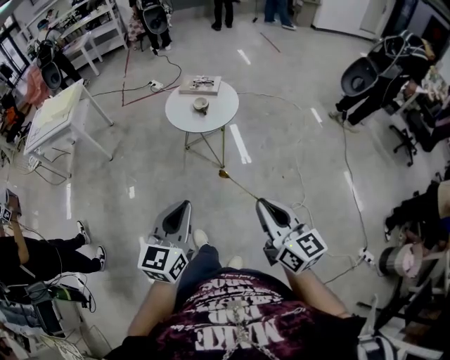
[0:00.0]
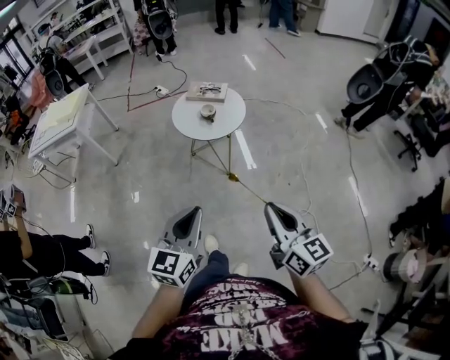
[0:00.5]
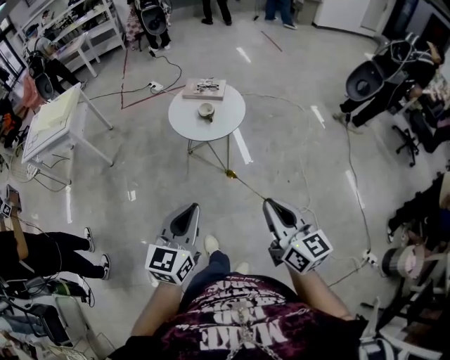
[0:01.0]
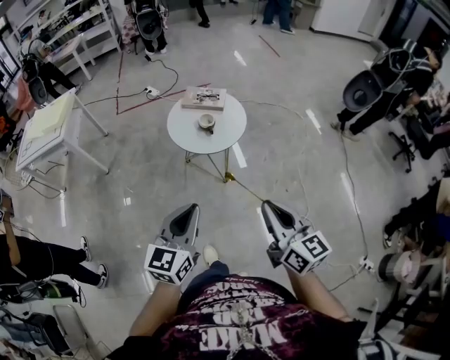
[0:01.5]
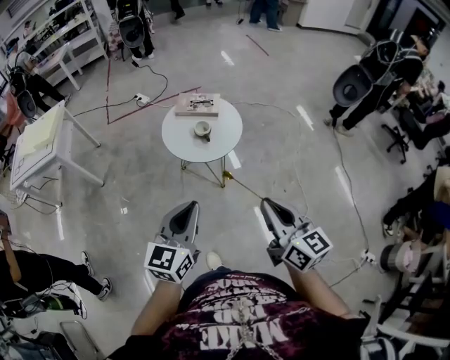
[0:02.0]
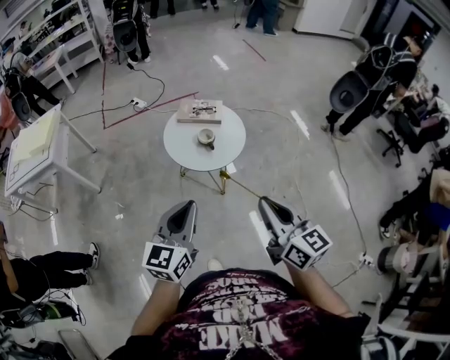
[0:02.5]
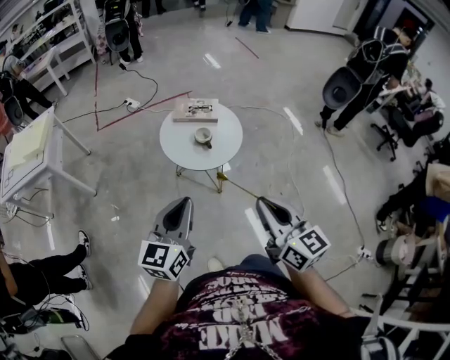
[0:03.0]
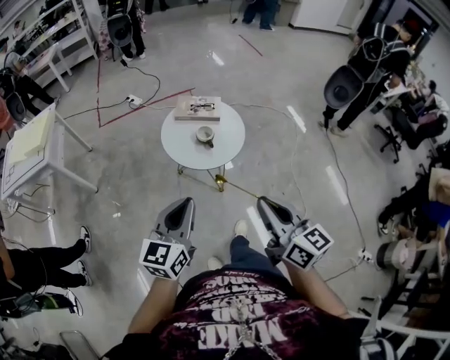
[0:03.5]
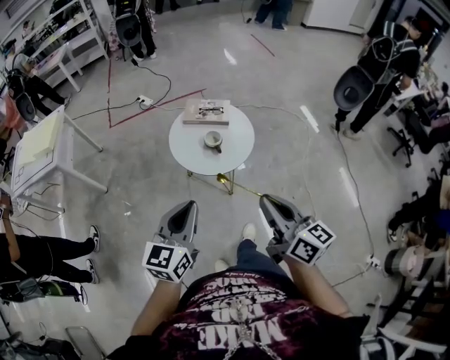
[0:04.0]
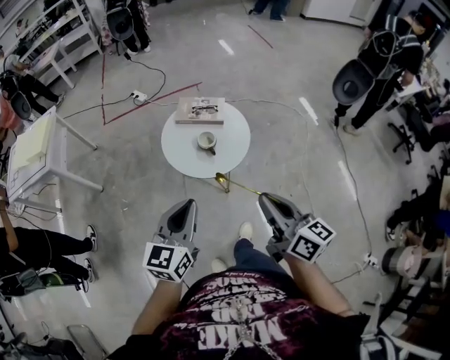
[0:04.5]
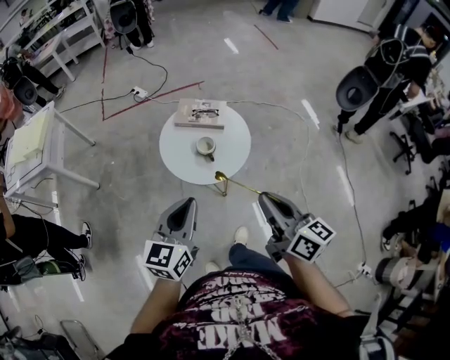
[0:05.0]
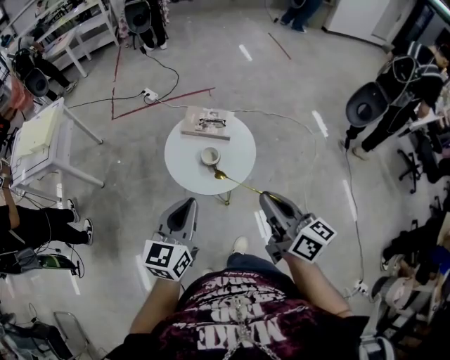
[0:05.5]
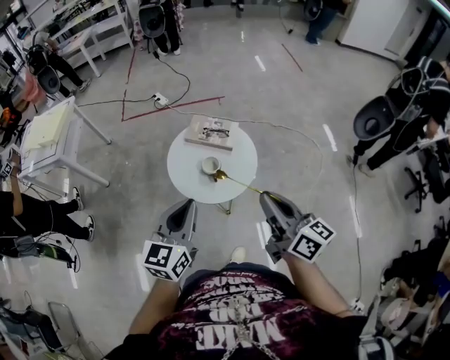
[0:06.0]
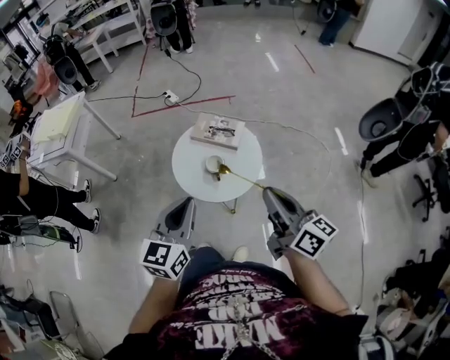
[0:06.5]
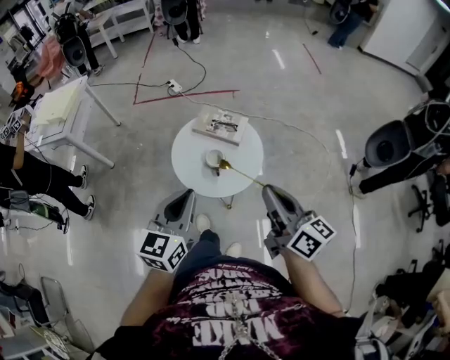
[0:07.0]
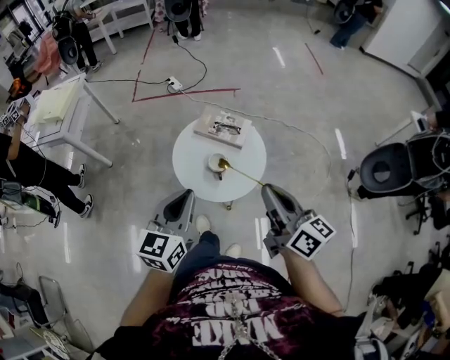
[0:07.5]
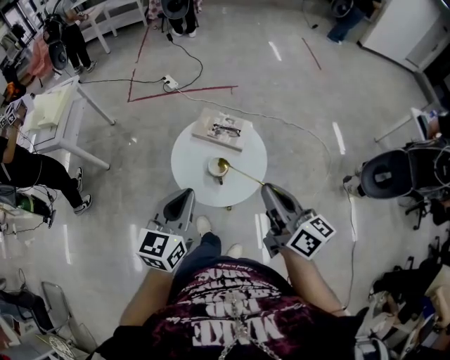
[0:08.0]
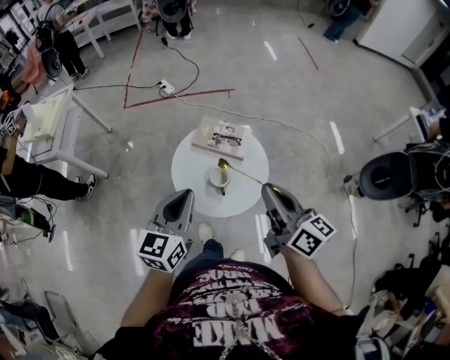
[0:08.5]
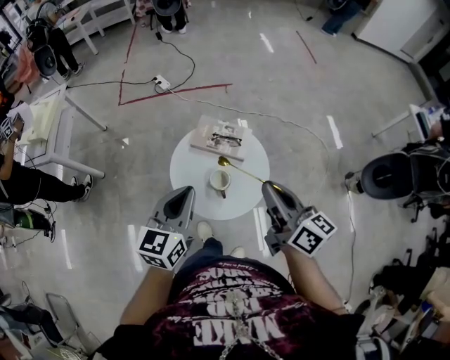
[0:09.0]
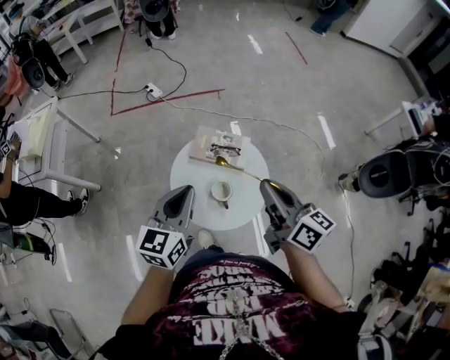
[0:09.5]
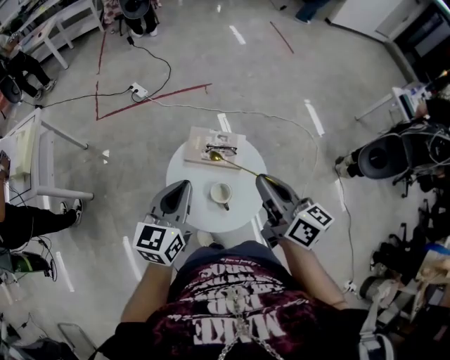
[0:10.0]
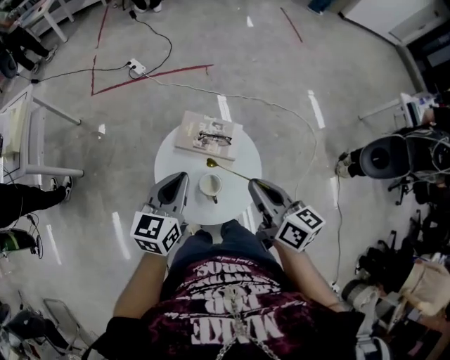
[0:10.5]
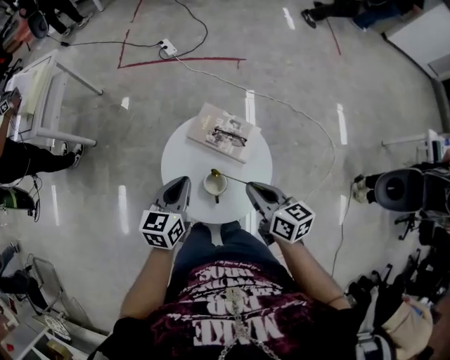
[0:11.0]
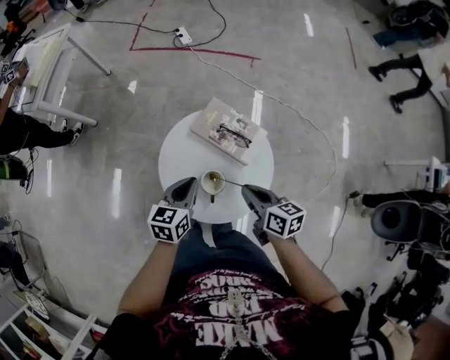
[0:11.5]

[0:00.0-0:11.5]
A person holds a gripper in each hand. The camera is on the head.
0:00.0 to 0:02.0: The two grippers go approximately 20 cm forward.
0:02.0 to 0:04.0: The left gripper shifts roughly 10 cm forward and to the left; the right gripper moves forward, approximately 10 cm.
0:04.0 to 0:06.0: The grippers both shift forward and to the right by approximately 20 cm.
0:06.0 to 0:07.5: The right gripper moves forward, about 5 cm.
0:07.5 to 0:09.5: Both grippers move forward, roughly 15 cm.
0:09.5 to 0:11.5: The grippers both shift downward by approximately 25 cm. The right gripper changes its angle by roughly 40 degrees, while the left gripper turns by roughly 30 degrees.

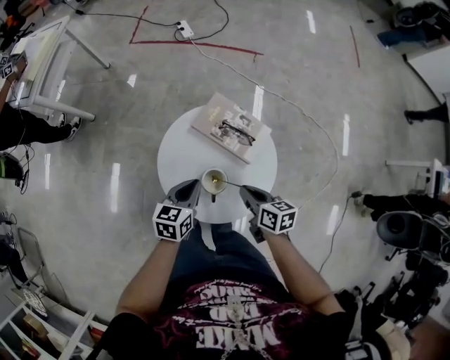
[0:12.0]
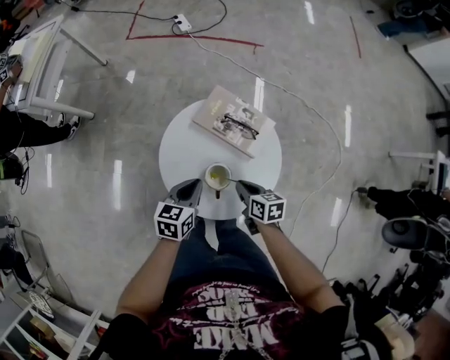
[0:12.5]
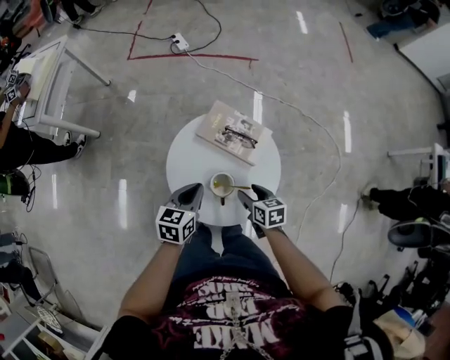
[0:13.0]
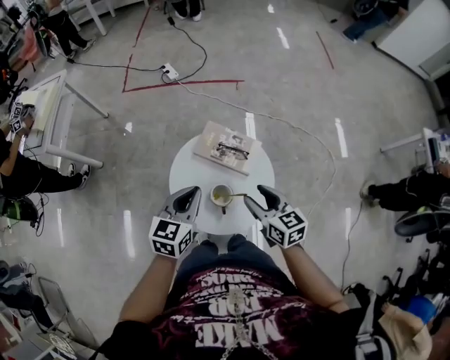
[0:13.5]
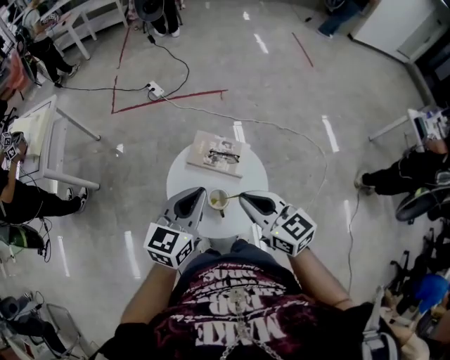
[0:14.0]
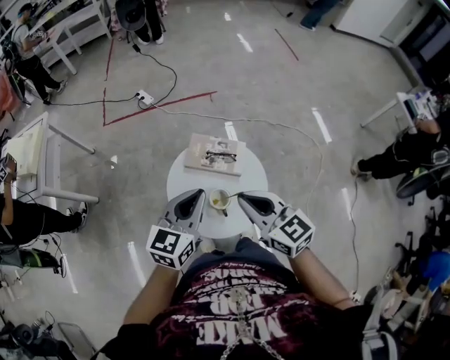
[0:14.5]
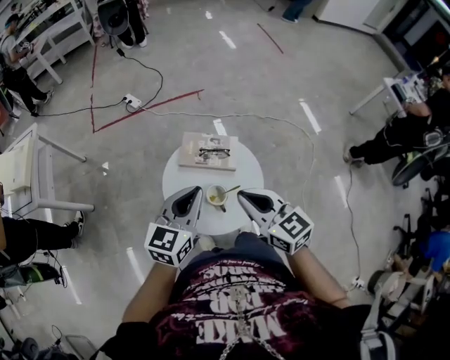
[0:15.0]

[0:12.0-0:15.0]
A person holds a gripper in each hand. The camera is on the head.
0:12.0 to 0:13.5: The grippers both shift upward by some 15 cm. The right gripper changes its angle by approximately 30 degrees, and opens its fingers; the left gripper turns by approximately 20 degrees.
0:13.5 to 0:15.0: The right gripper is displaced upward and to the left by roughly 15 cm, and closes its fingers; the left gripper shifts roughly 10 cm upward.

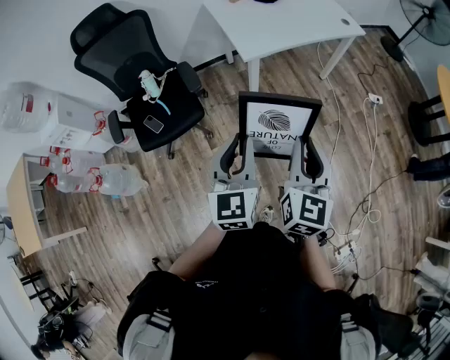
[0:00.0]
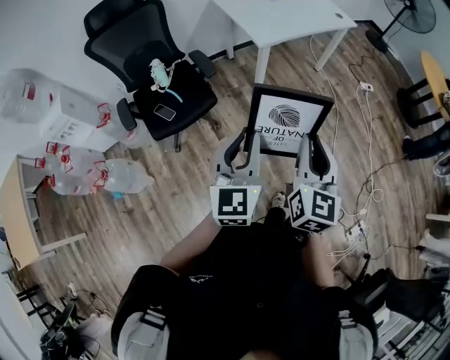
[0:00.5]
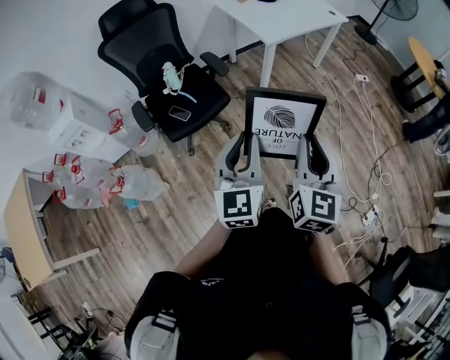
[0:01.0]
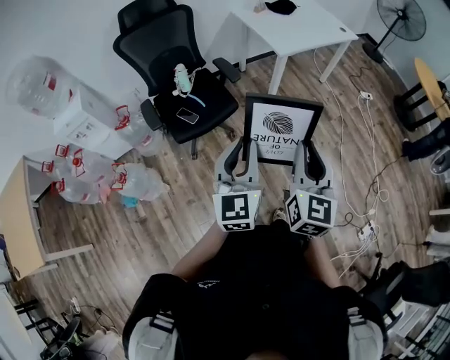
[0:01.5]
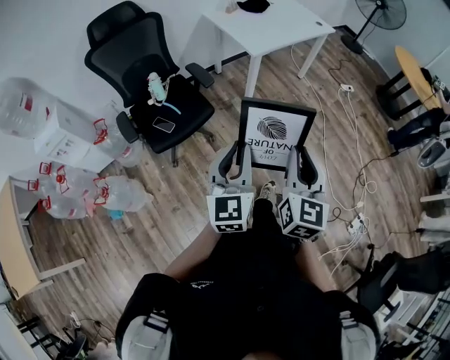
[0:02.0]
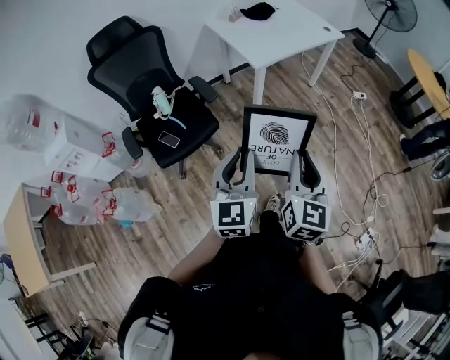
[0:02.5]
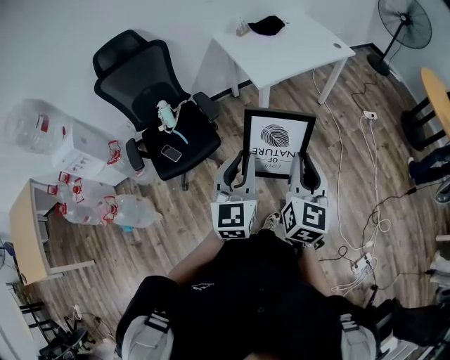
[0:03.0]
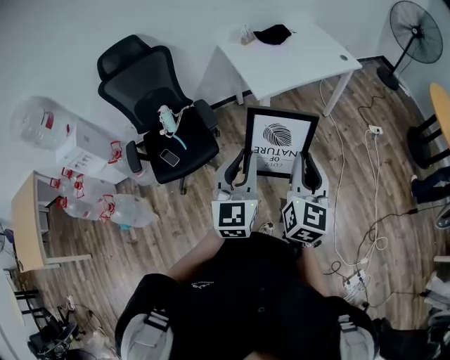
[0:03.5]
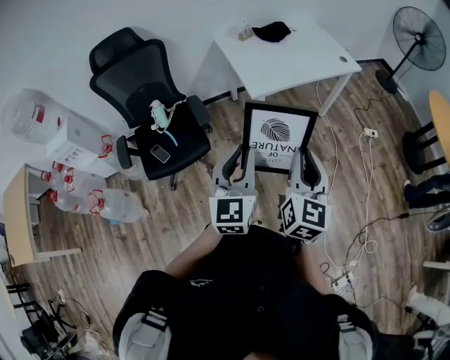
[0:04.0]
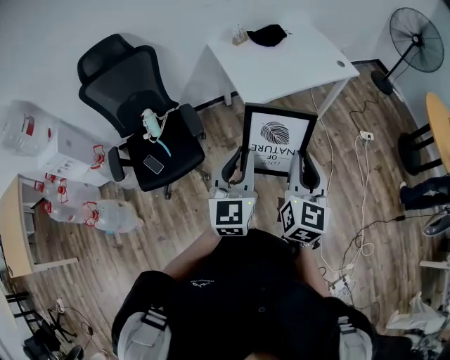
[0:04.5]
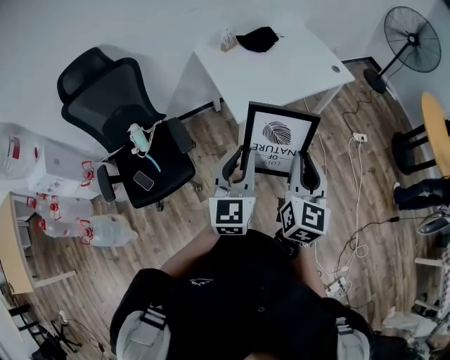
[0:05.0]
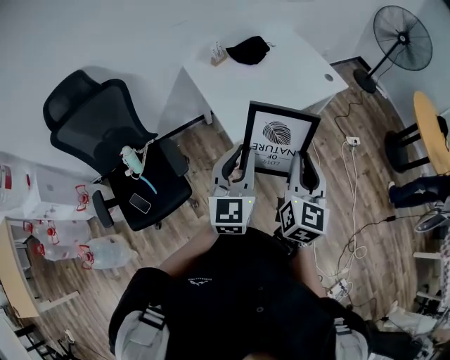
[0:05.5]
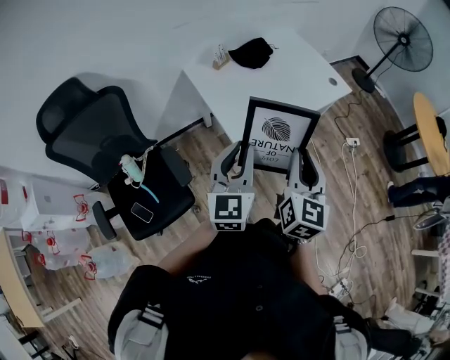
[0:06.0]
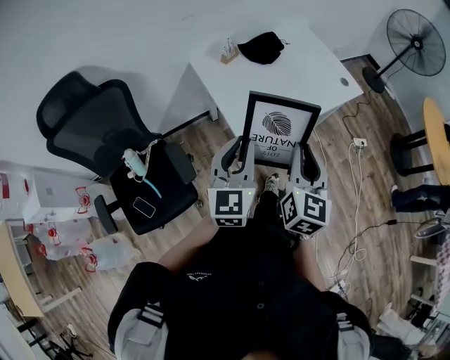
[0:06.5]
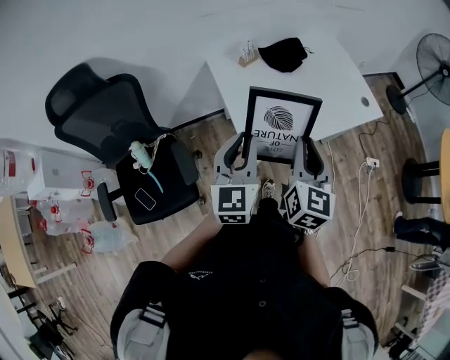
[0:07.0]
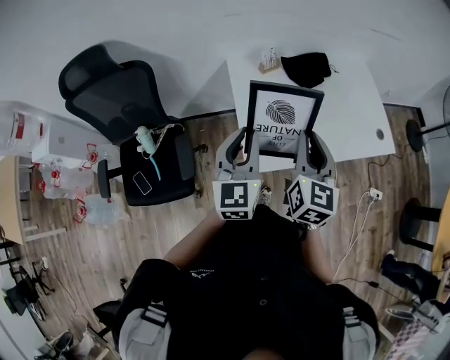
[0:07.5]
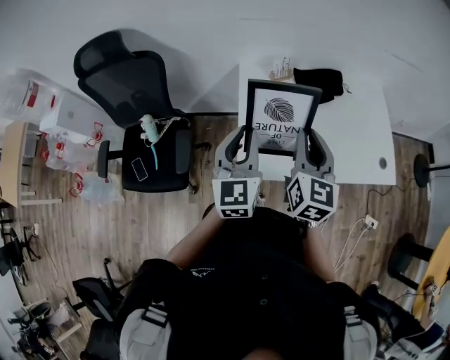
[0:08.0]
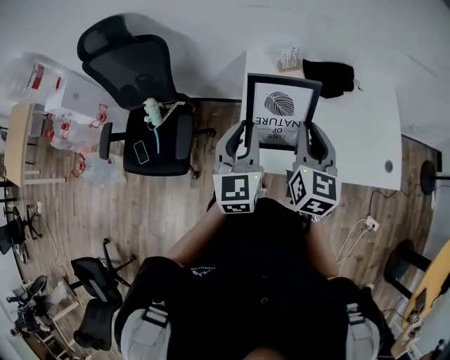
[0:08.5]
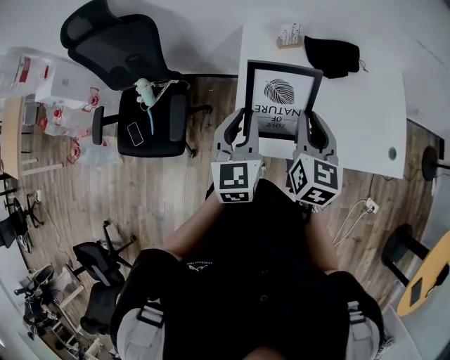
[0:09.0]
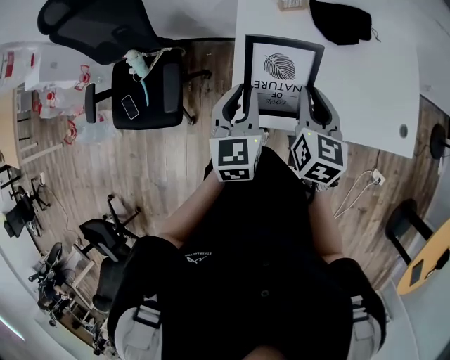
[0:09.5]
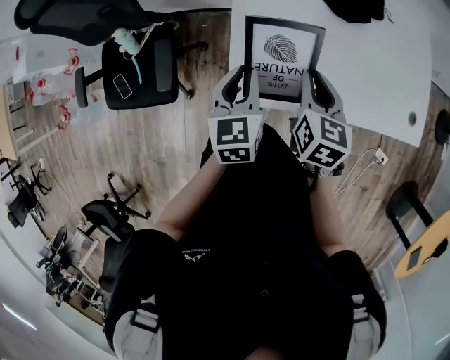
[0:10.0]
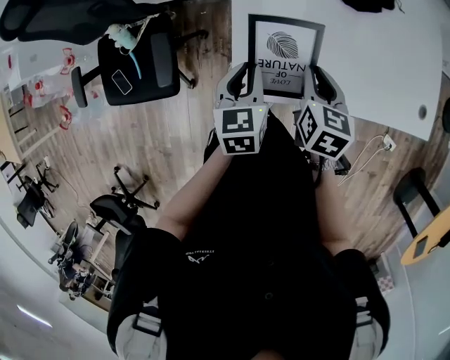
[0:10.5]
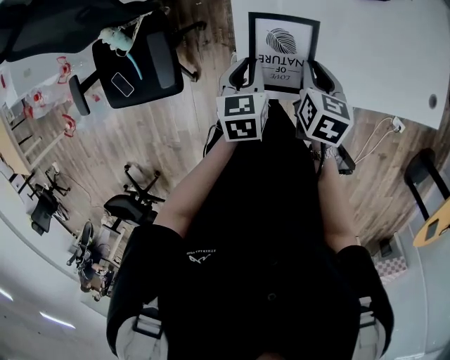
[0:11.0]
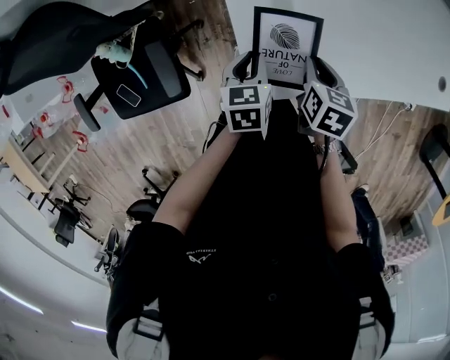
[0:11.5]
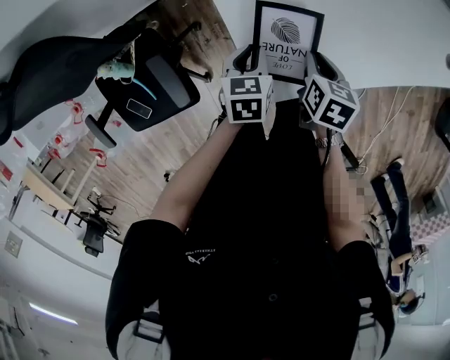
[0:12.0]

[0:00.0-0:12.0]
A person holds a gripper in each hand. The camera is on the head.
0:00.0 to 0:02.0: Both grippers move backward and to the left, about 35 cm.
0:02.0 to 0:04.0: Both grippers travel together forward and to the right, some 35 cm.
0:04.0 to 0:06.0: The grippers both shift forward by approximately 35 cm.
0:06.0 to 0:08.0: The left gripper ends up approximately 20 cm from where it was, and rotates approximately 40 degrees. The right gripper moves approximately 30 cm, and rotates approximately 40 degrees.
0:08.0 to 0:10.0: The grippers both shift downward by some 20 cm. The right gripper rotates approximately 30 degrees. The left gripper swivels some 30 degrees.
0:10.0 to 0:12.0: The two grippers go roughly 20 cm downward. The left gripper turns by some 40 degrees, while the right gripper changes its angle by approximately 30 degrees.
